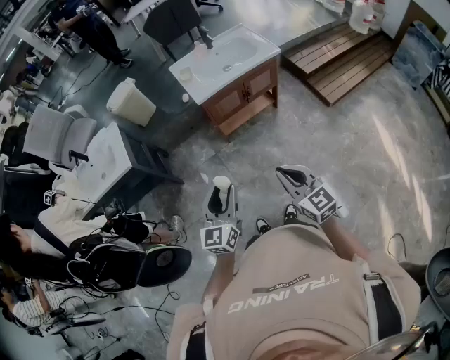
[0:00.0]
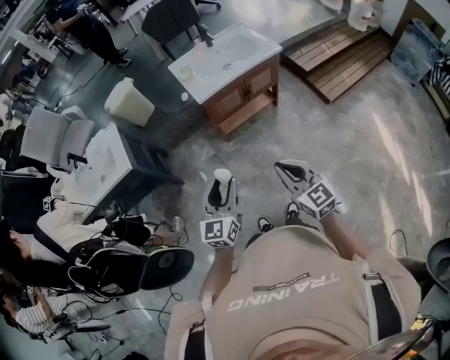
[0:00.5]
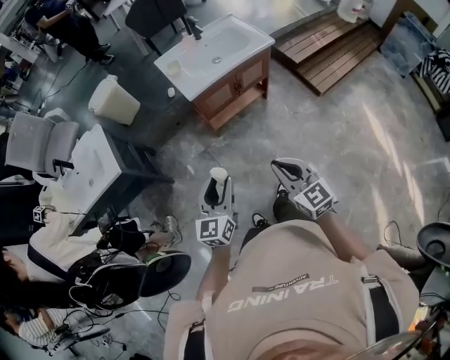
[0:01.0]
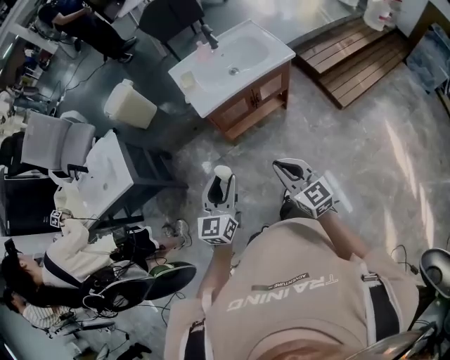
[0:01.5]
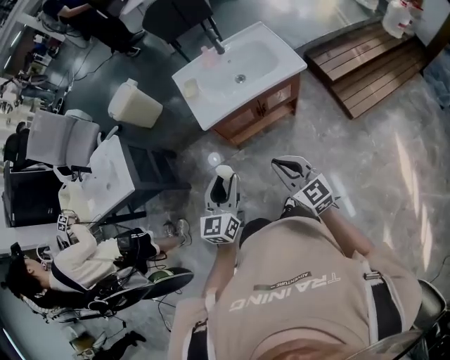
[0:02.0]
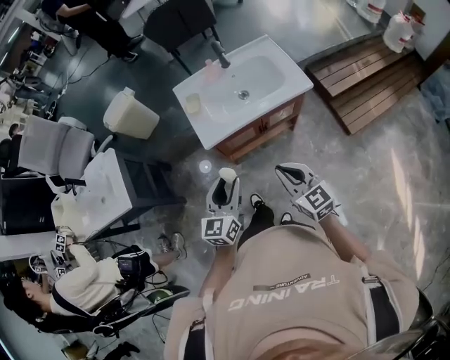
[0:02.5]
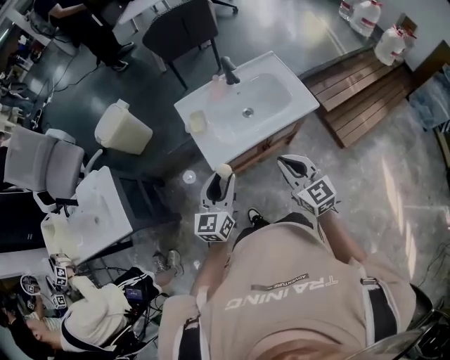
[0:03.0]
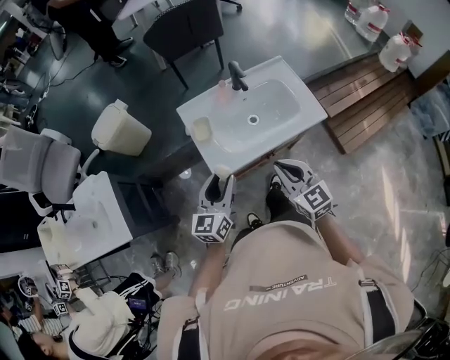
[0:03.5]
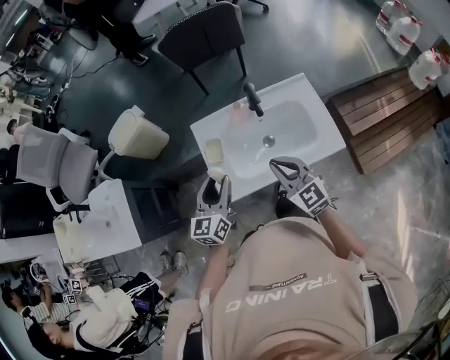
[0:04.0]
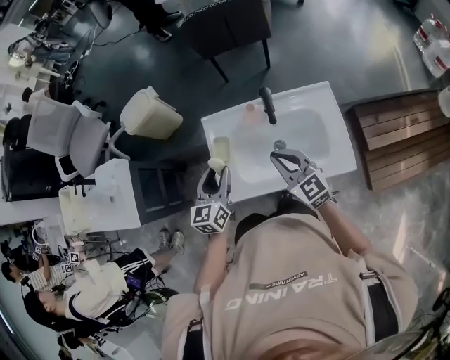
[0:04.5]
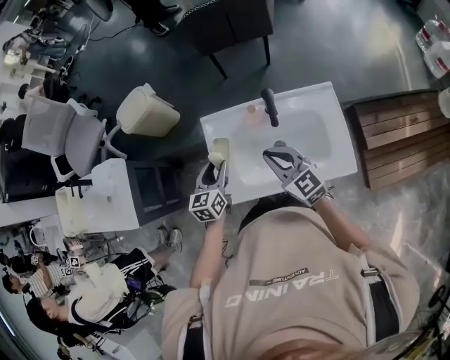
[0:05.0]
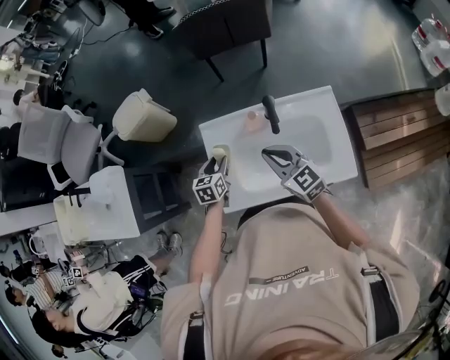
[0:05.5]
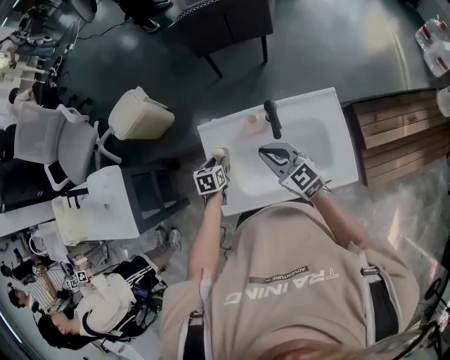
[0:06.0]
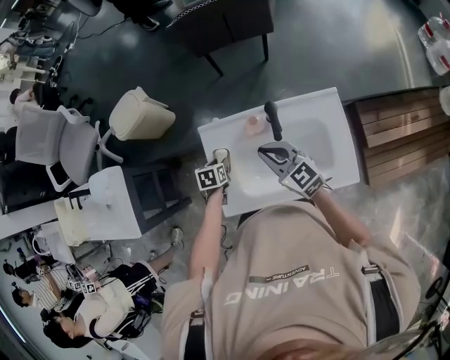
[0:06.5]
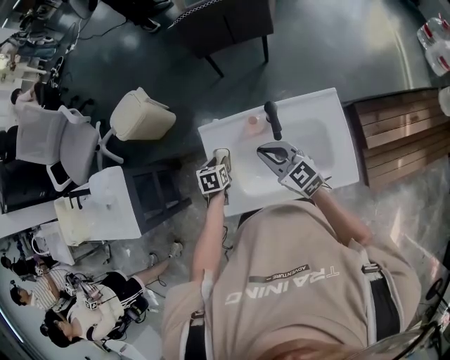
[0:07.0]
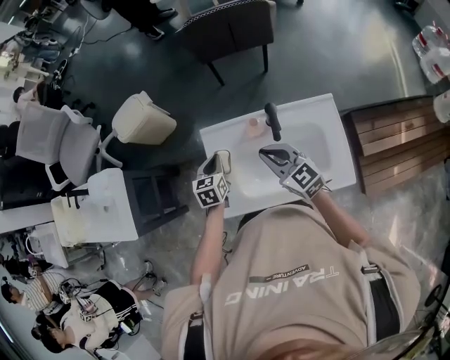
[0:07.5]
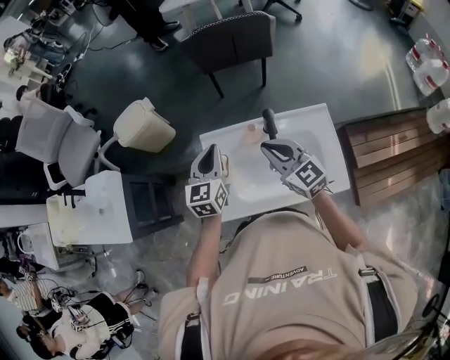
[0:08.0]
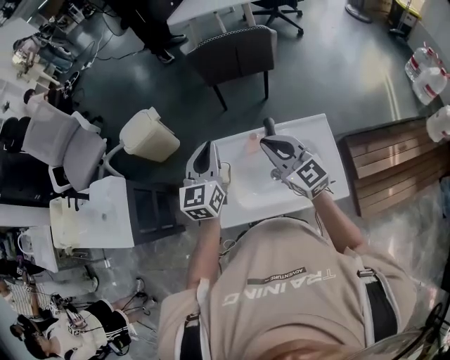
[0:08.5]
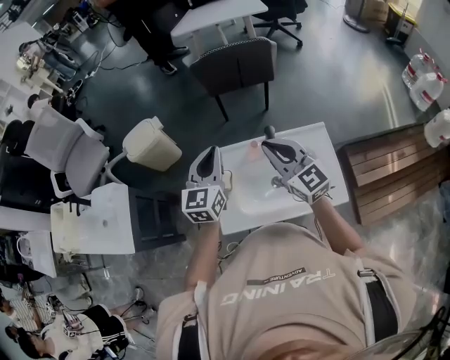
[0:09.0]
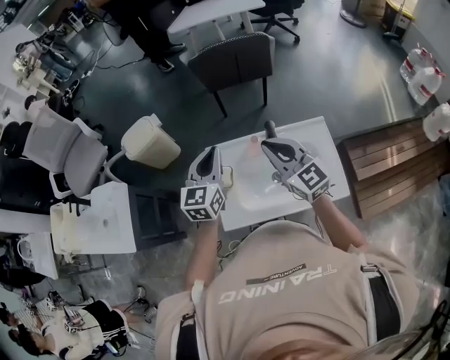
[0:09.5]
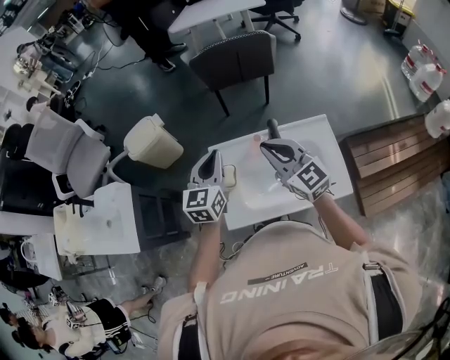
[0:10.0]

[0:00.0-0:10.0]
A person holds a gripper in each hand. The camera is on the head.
0.0 to 2.0 s: Both grippers move forward, about 25 cm.
2.0 to 4.0 s: Both grippers move forward, some 40 cm.
4.0 to 6.0 s: The right gripper travels forward by roughly 20 cm; the left gripper moves downward and forward, roughly 30 cm, and tips its fingers downward by about 50 degrees.
6.0 to 8.0 s: The right gripper is displaced upward by roughly 10 cm. Meanwhile the left gripper moves upward, about 25 cm, points its fingers approximately 40 degrees further upward, and closes its fingers.
8.0 to 10.0 s: The two grippers go about 5 cm upward.

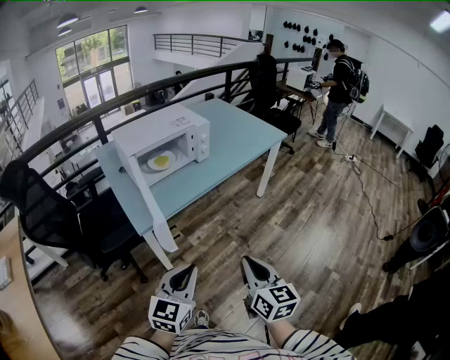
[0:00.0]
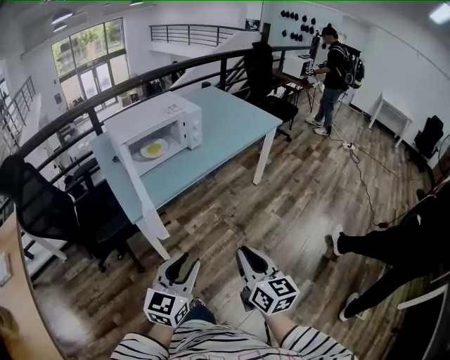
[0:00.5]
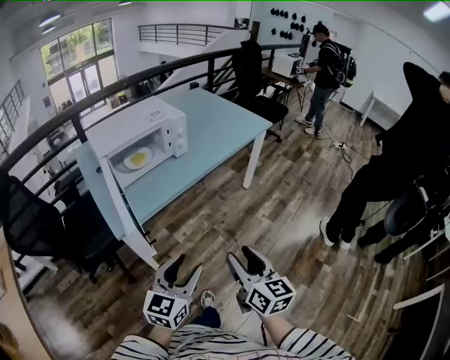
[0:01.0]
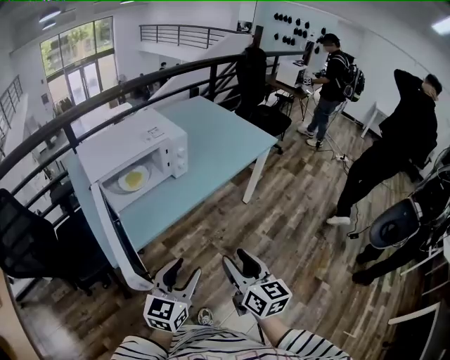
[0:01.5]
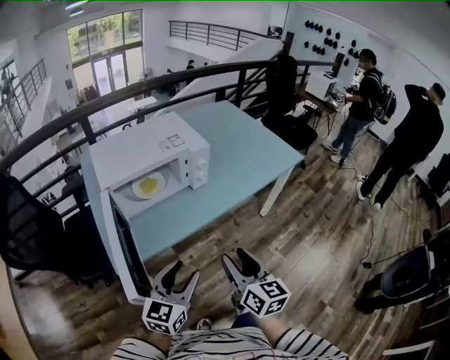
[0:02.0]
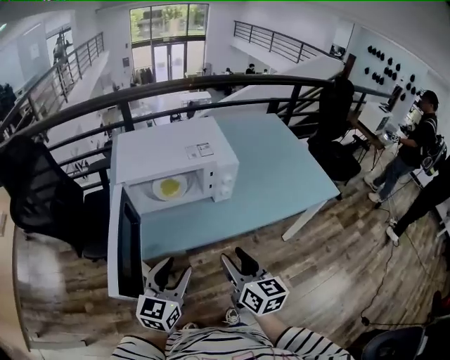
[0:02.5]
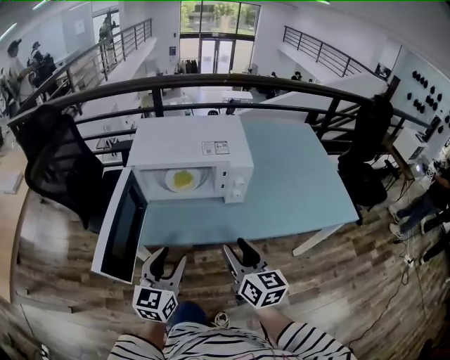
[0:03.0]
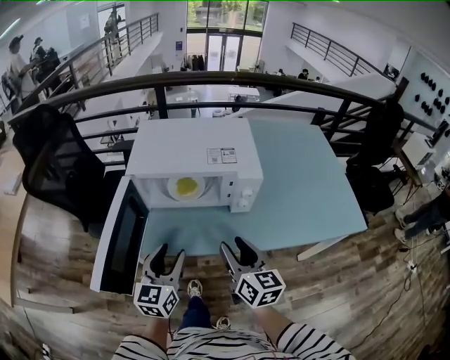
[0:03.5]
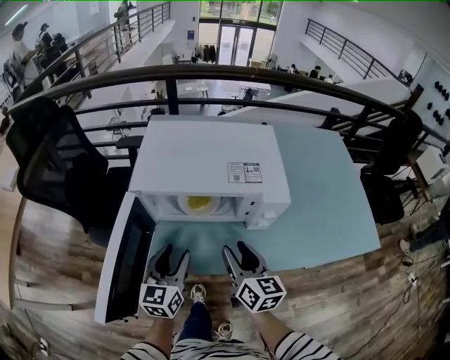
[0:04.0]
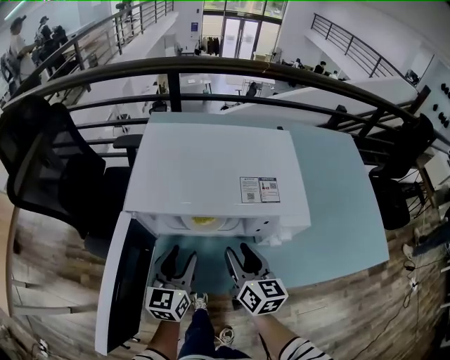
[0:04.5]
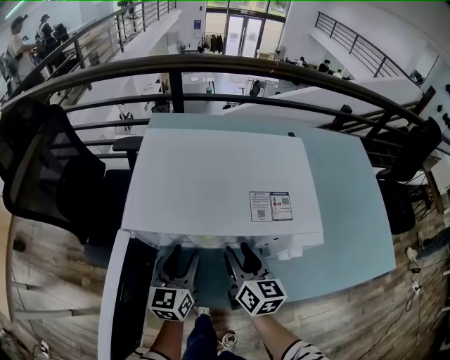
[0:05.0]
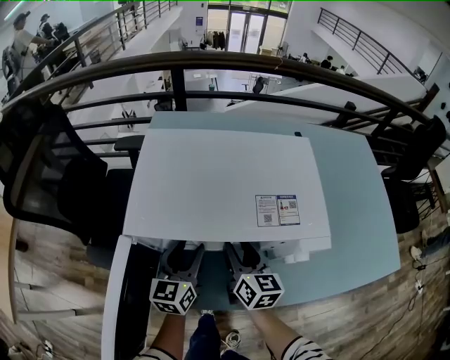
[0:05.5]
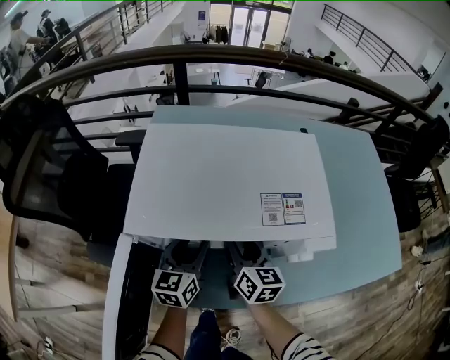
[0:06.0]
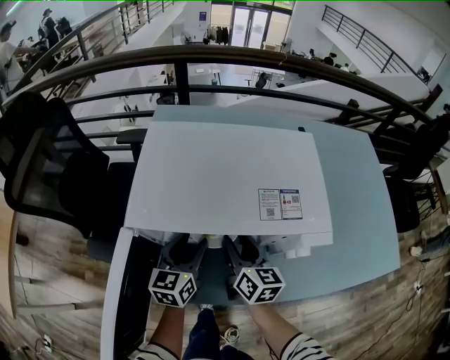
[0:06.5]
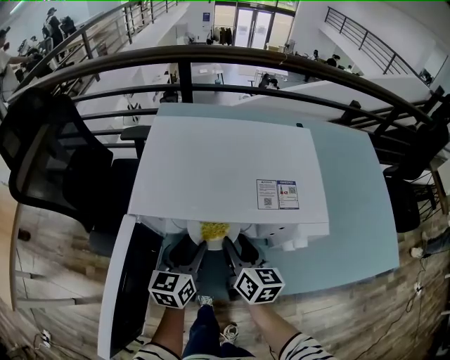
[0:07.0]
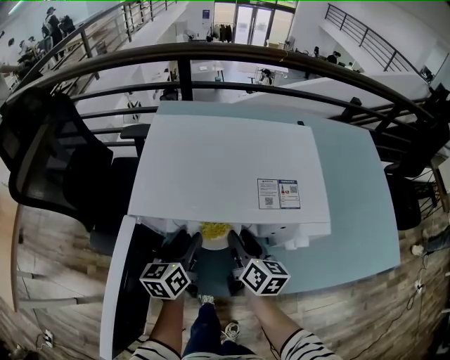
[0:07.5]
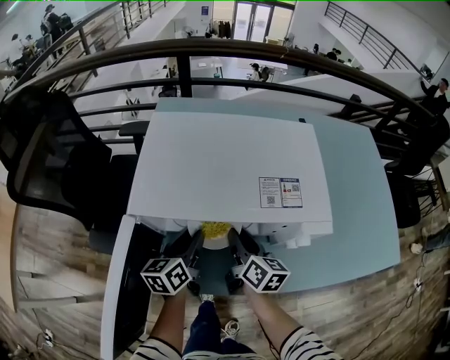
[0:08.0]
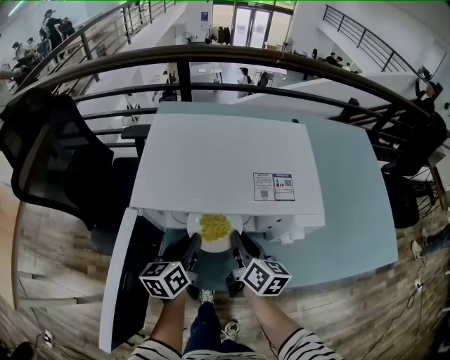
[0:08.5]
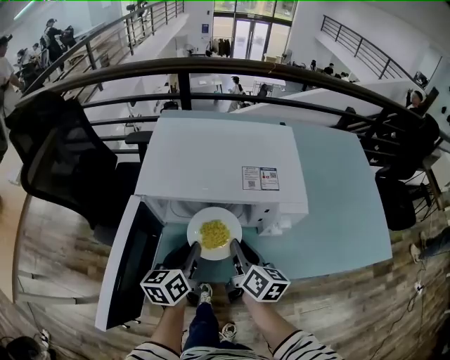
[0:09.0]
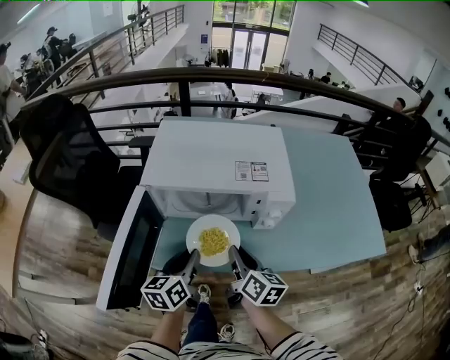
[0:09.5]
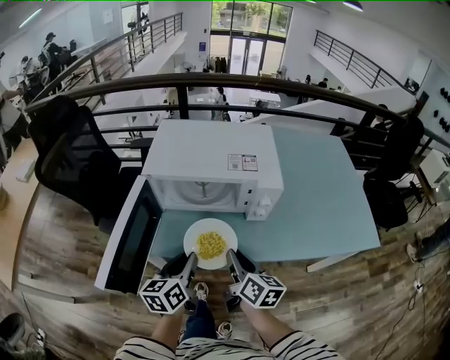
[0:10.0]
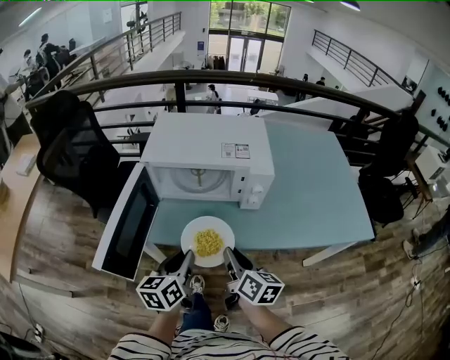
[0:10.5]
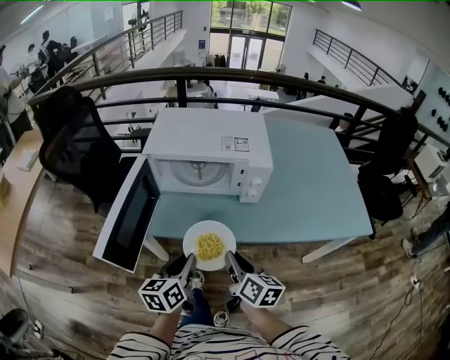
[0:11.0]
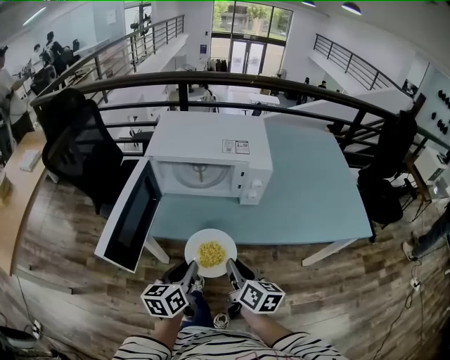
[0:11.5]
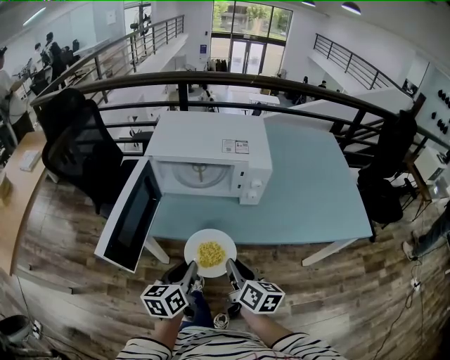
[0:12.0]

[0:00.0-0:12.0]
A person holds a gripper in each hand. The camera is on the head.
0.0 to 2.0 s: The two grippers go about 25 cm forward. The right gripper opens. The left gripper opens up.
2.0 to 4.0 s: The right gripper moves some 30 cm, and changes its angle by about 30 degrees, while the left gripper ends up approximately 25 cm from where it was, and swivels some 50 degrees.
4.0 to 6.0 s: The grippers both shift forward and downward by approximately 15 cm.
6.0 to 8.0 s: The left gripper swivels about 20 degrees.
8.0 to 10.0 s: Both grippers move backward, approximately 20 cm.
10.0 to 12.0 s: Both grippers move backward, approximately 10 cm.

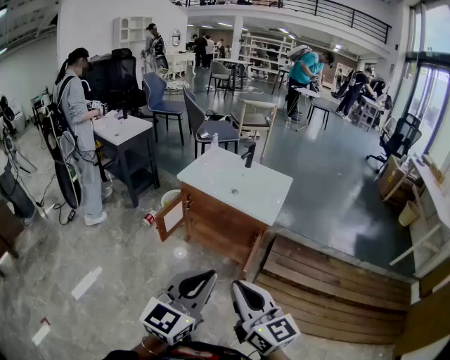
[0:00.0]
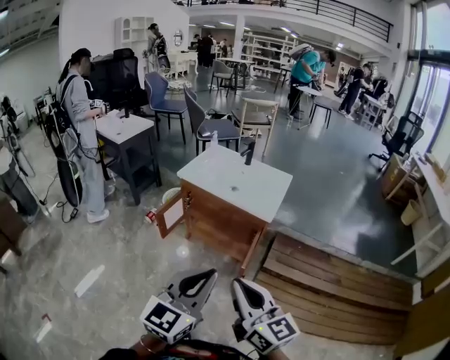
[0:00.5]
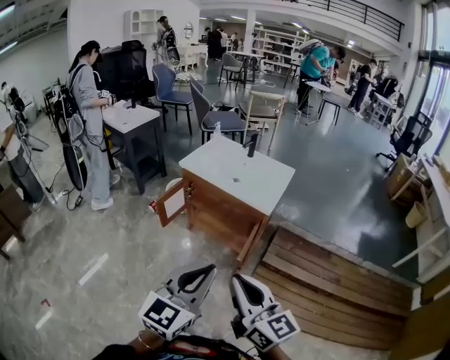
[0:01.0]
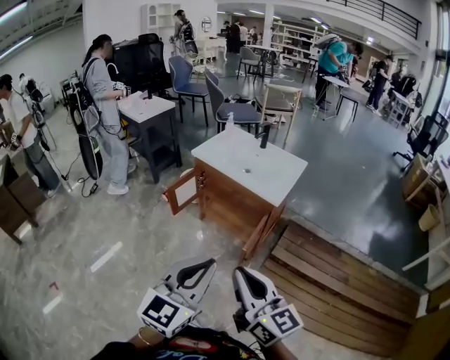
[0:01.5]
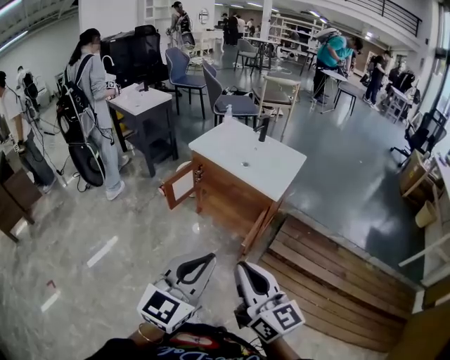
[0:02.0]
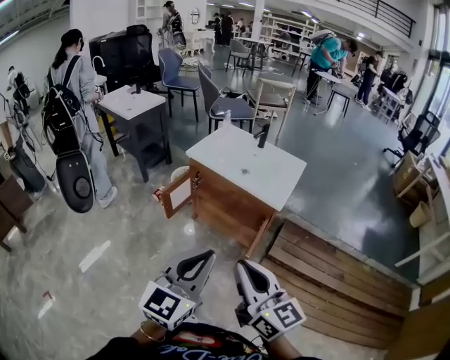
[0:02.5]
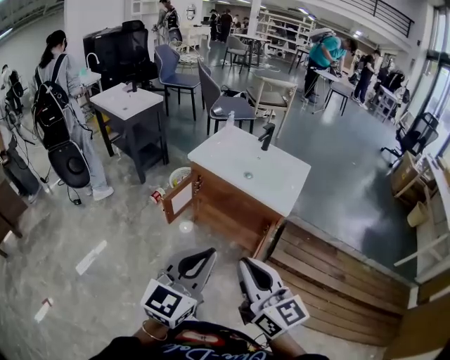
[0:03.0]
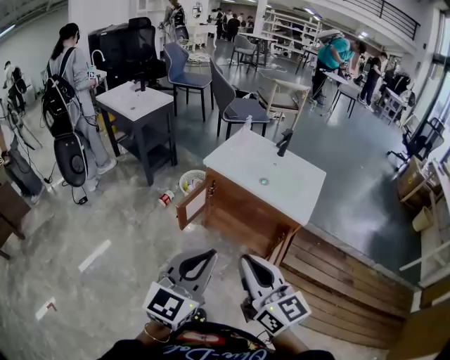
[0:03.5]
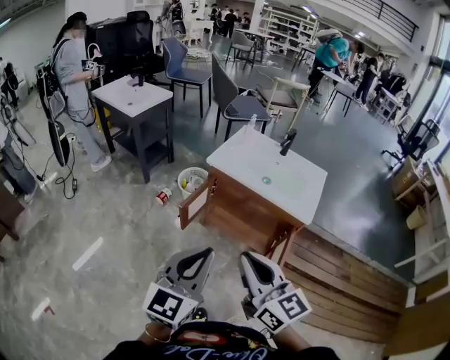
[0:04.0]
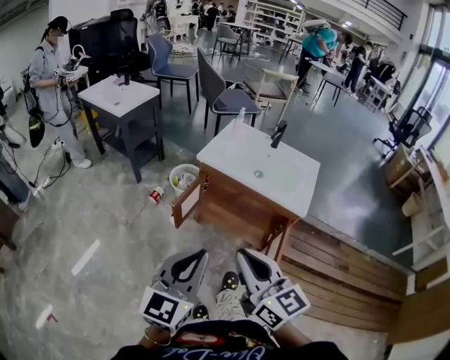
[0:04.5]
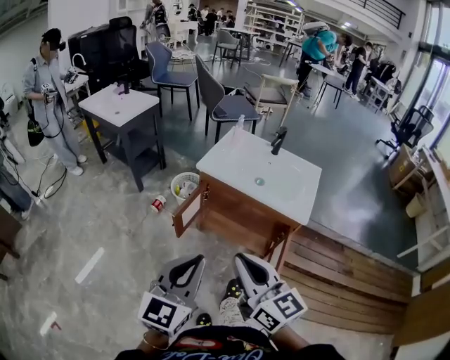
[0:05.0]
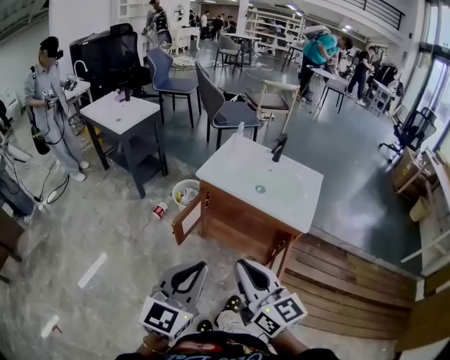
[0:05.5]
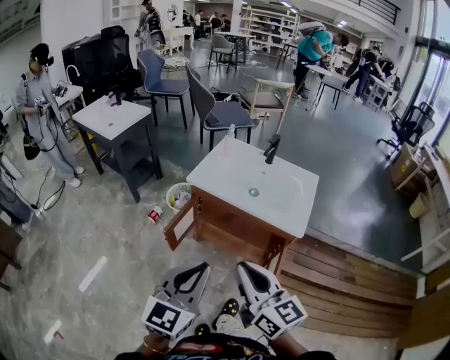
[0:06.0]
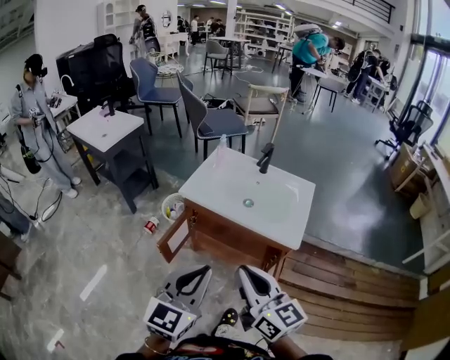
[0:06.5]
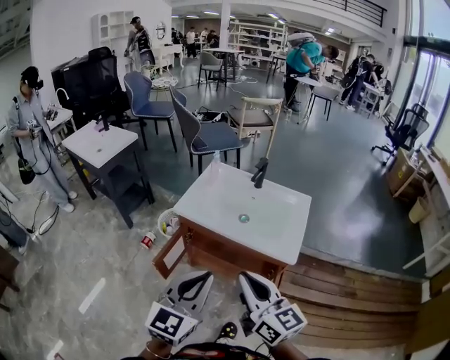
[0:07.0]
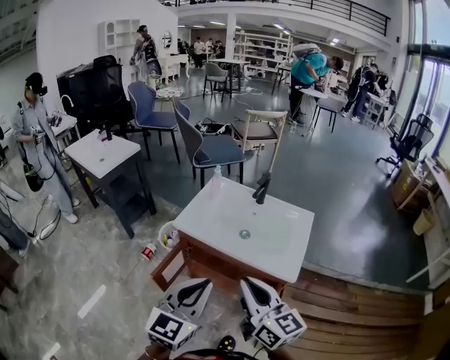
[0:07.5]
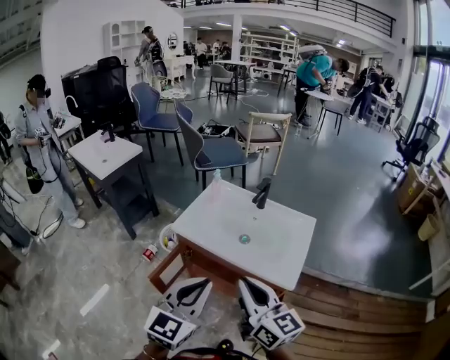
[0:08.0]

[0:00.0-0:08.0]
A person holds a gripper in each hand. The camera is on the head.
0.0 to 2.0 s: The grippers both shift to the right by roughly 5 cm.
2.0 to 4.0 s: Both grippers move to the left and forward, approximately 25 cm.
4.0 to 6.0 s: Both grippers move forward and to the right, roughly 10 cm.
6.0 to 8.0 s: The two grippers go about 15 cm forward and to the right.
